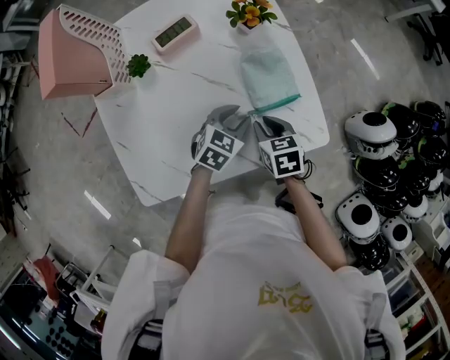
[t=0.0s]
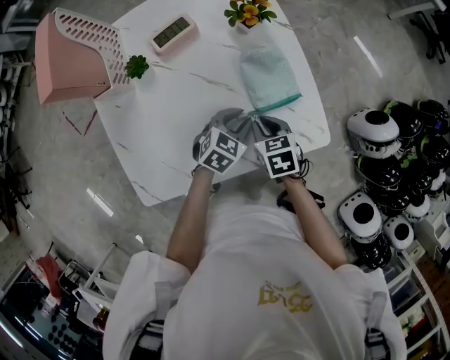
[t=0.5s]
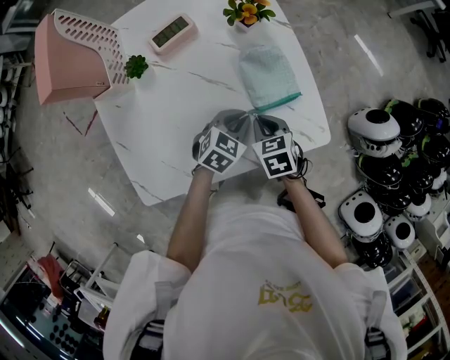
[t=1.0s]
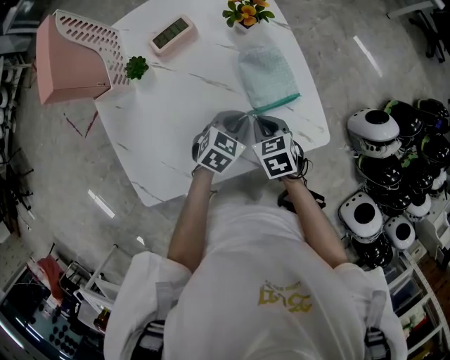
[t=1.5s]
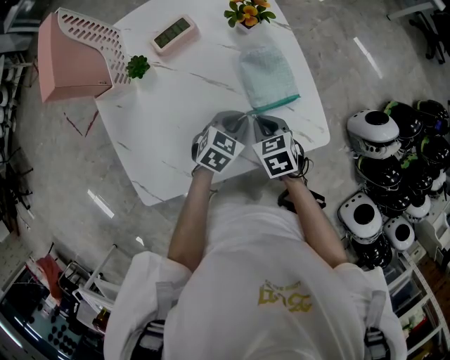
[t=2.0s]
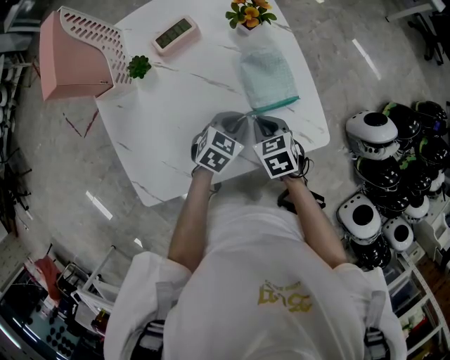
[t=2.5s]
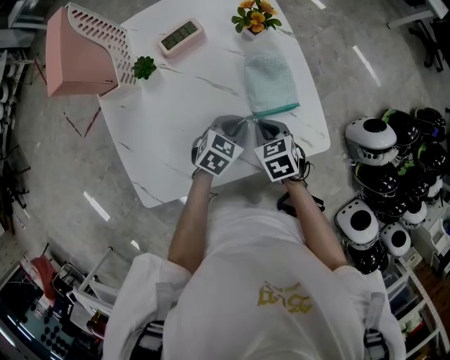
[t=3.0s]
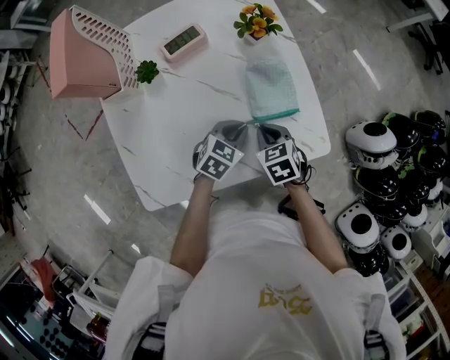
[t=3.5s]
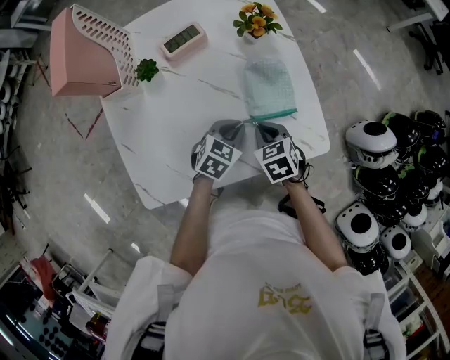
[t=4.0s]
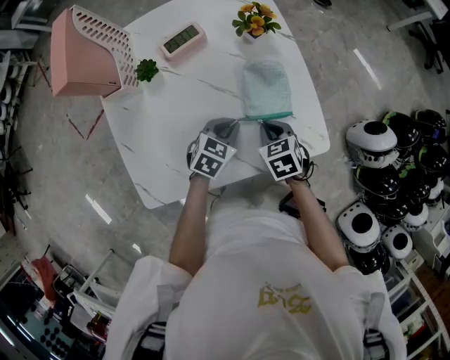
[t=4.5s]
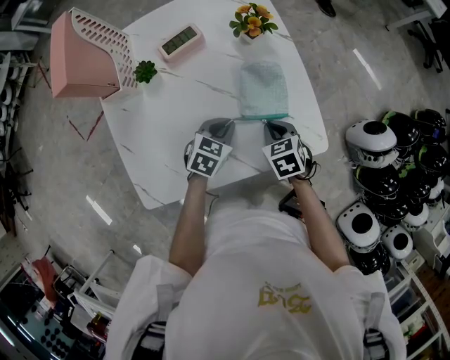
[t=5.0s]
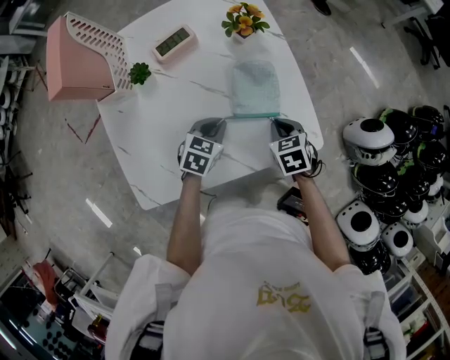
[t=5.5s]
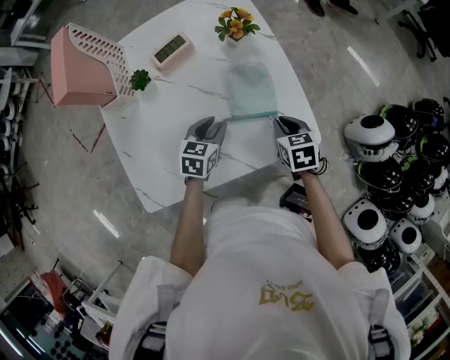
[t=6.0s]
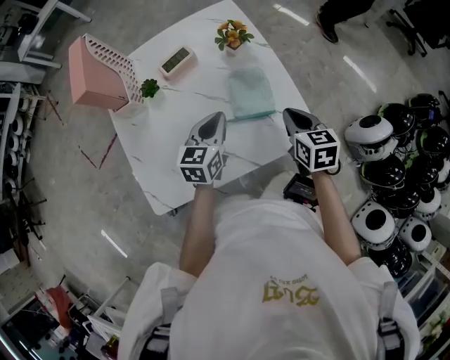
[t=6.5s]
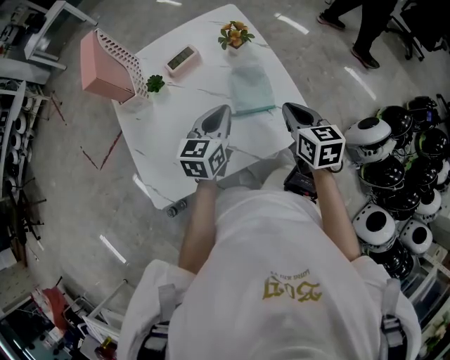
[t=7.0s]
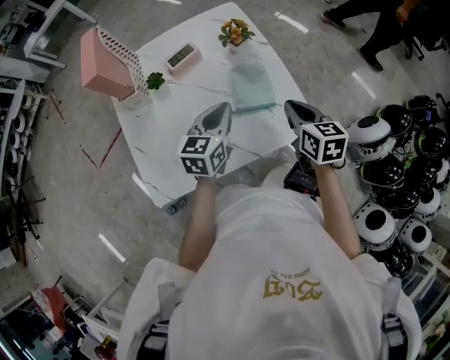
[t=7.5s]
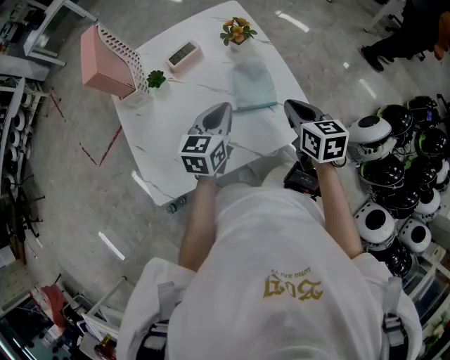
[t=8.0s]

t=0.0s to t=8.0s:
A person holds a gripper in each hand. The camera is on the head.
t=0.0s to t=2.0s: The left gripper closes.
t=2.0s to t=4.0s: The grippers make only small movements.
t=4.0s to t=6.0s: The left gripper opens up, while the right gripper moves to the right, about 10 cm.
t=6.0s to t=8.0s: The grippers both shift upward by some 15 cm. The right gripper rotates roughly 20 degrees; the left gripper rotates approximately 20 degrees, and closes up.

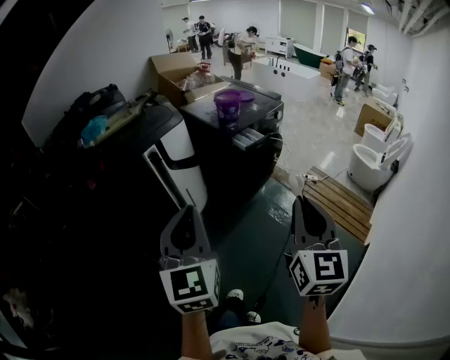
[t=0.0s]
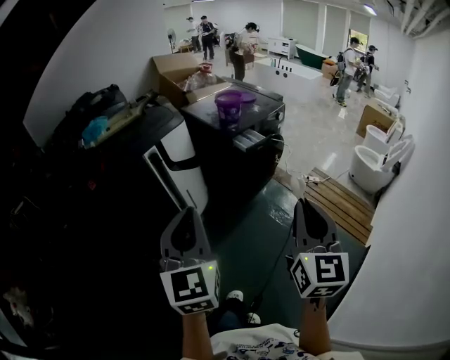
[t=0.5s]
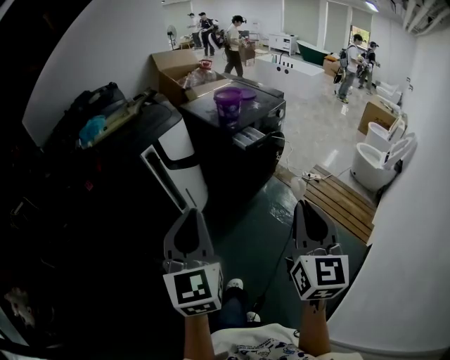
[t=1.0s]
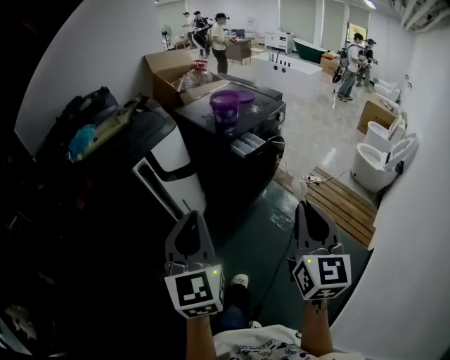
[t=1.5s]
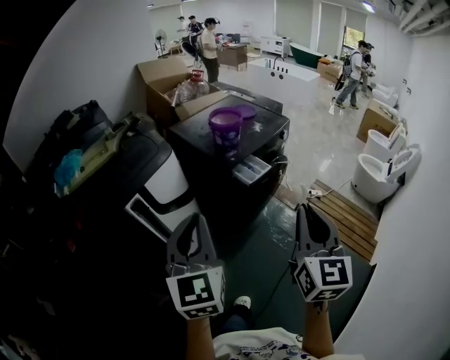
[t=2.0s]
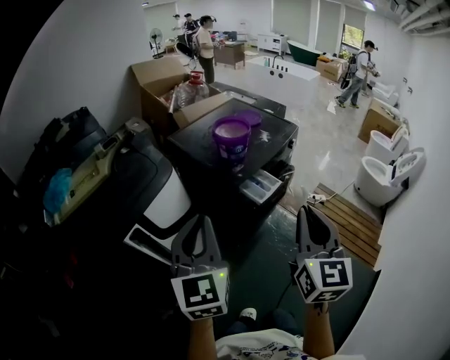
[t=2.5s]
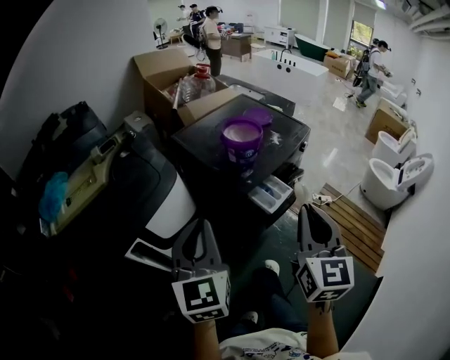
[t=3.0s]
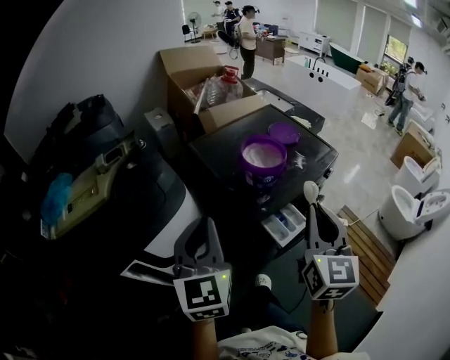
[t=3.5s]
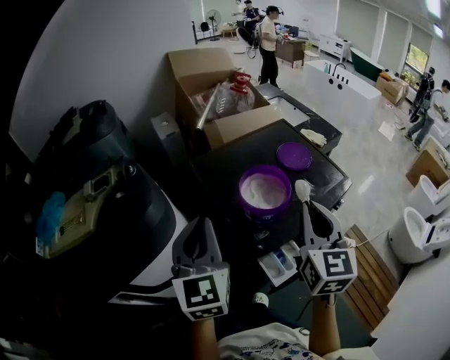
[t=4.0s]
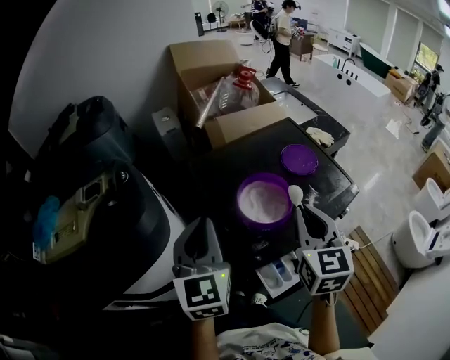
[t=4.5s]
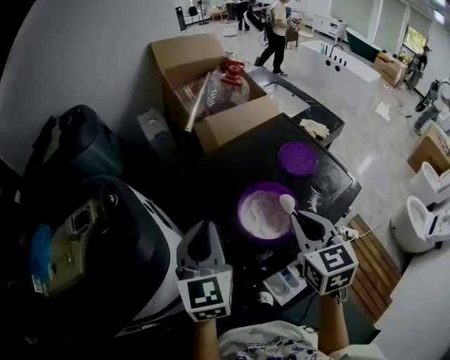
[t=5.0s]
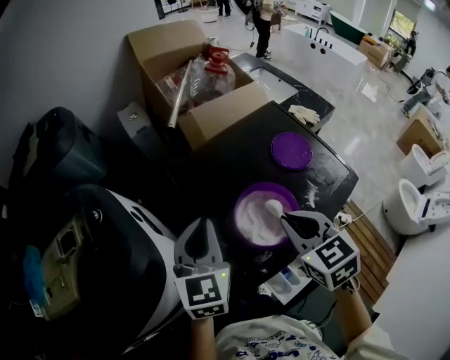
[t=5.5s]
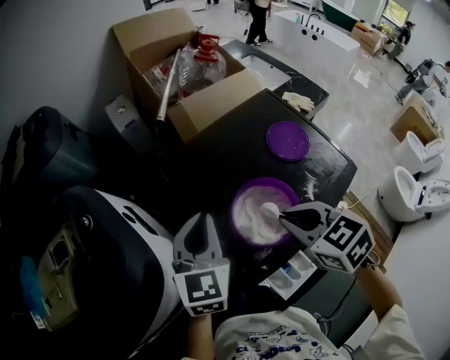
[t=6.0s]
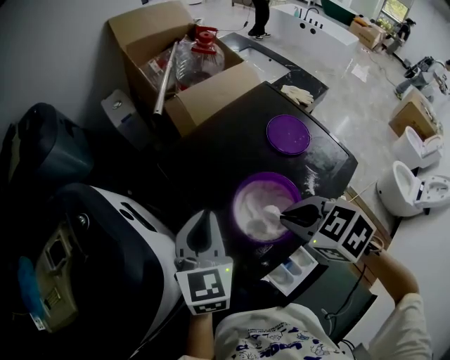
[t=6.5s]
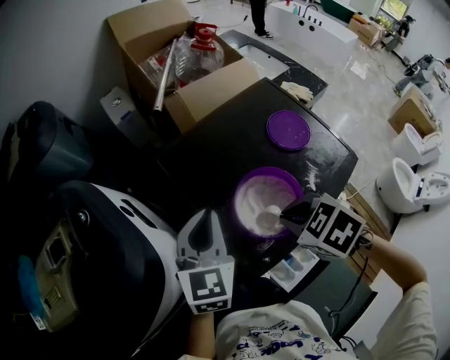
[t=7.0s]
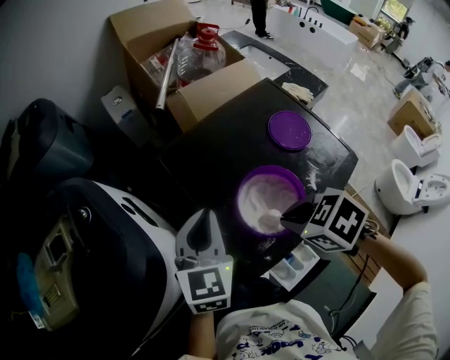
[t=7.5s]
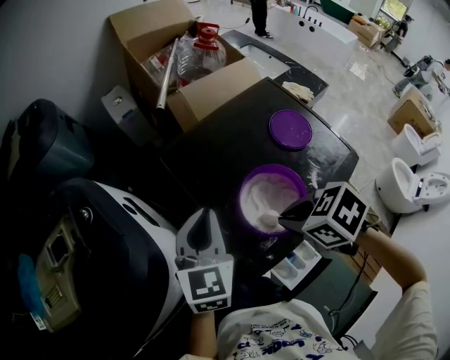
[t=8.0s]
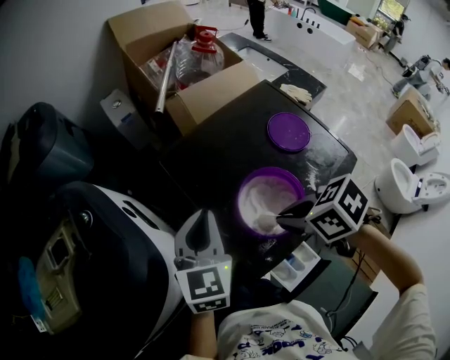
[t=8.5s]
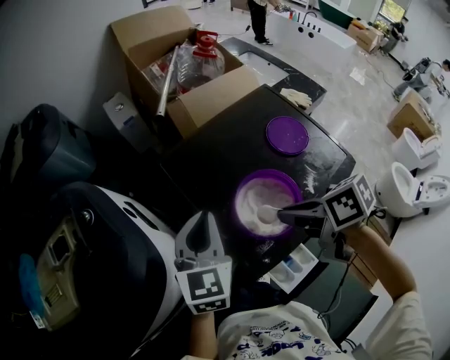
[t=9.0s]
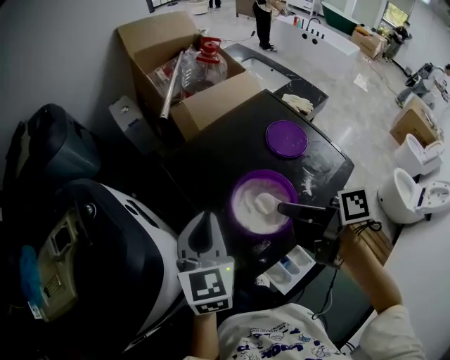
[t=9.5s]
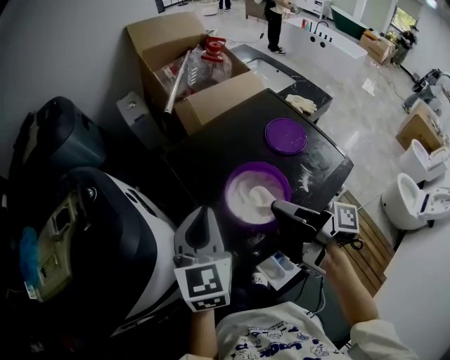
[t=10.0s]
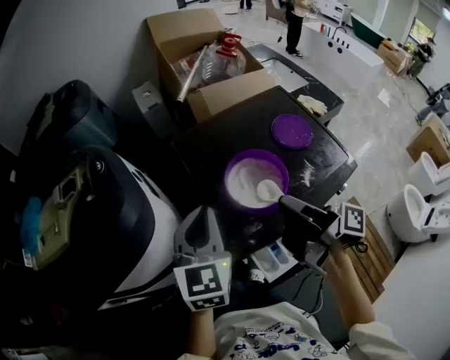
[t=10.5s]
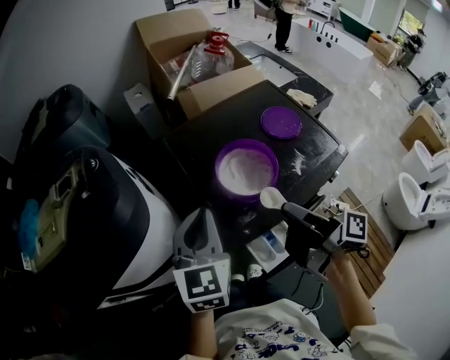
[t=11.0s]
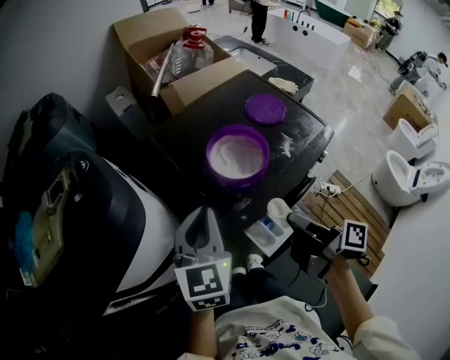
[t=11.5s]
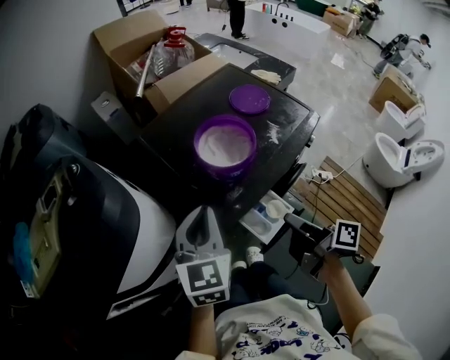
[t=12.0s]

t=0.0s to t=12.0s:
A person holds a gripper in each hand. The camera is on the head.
t=0.0s to t=2.0s: The two grippers go about 25 cm forward.
t=2.0s to t=4.0s: The two grippers travel together, forward, about 50 cm.
t=4.0s to t=6.0s: Both grippers move forward and downward, some 20 cm. The right gripper tips its fingers downward by some 40 degrees.
t=6.0s to t=8.0s: The right gripper swivels some 20 degrees.
t=8.0s to t=10.0s: The right gripper moves approximately 5 cm, and angles its fingers upward, by some 60 degrees. Meanwhile the left gripper ends up about 5 cm from where it was.
t=10.0s to t=12.0s: The right gripper is displaced backward and downward by roughly 20 cm, and rotates some 30 degrees. Meanwhile the left gripper goes some 15 cm backward.

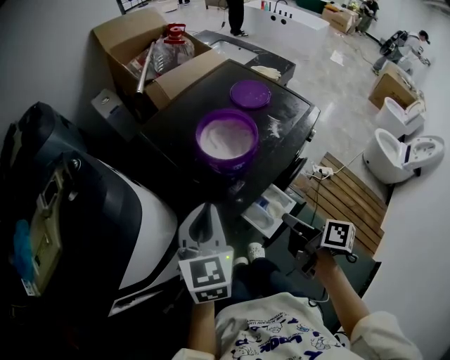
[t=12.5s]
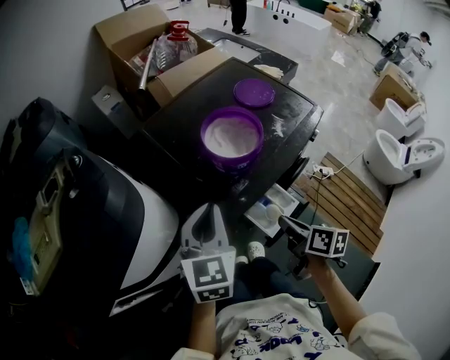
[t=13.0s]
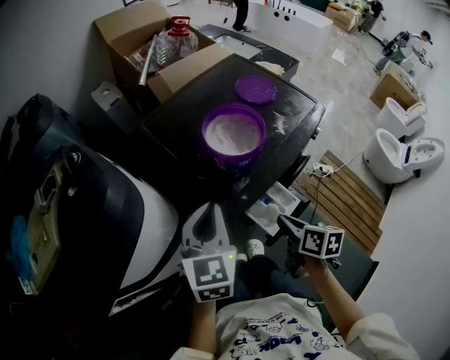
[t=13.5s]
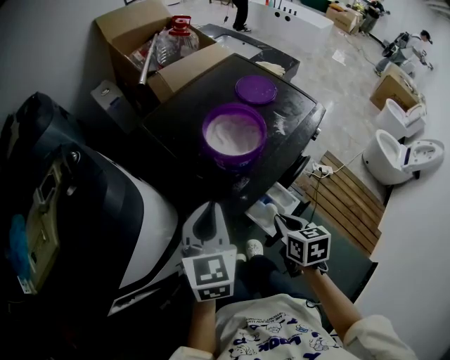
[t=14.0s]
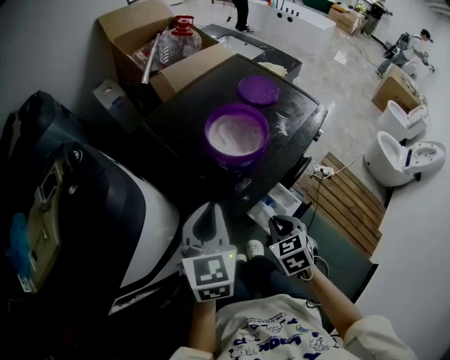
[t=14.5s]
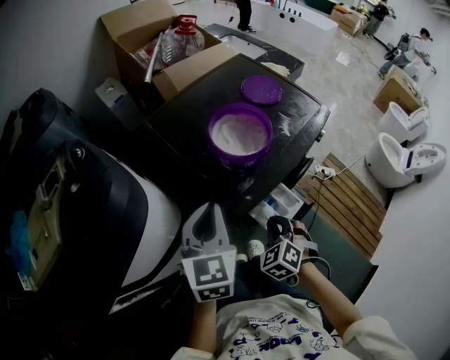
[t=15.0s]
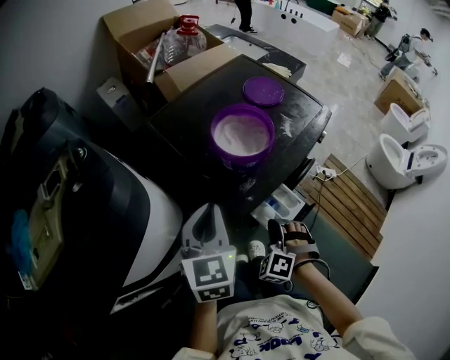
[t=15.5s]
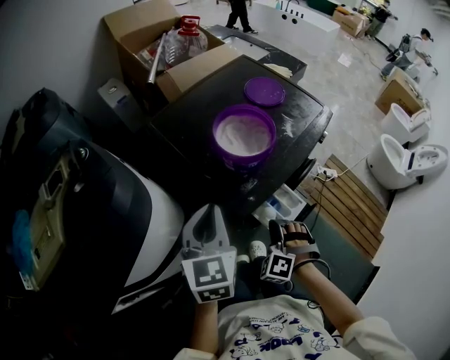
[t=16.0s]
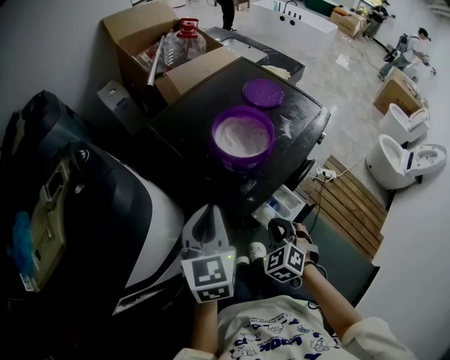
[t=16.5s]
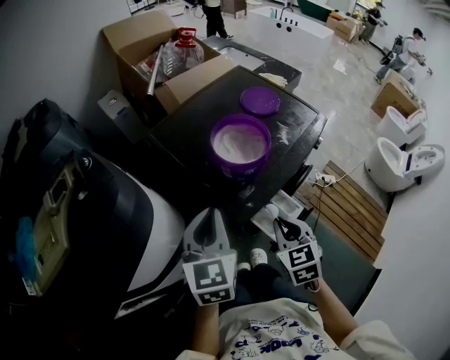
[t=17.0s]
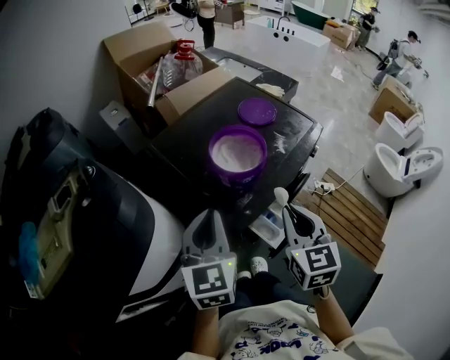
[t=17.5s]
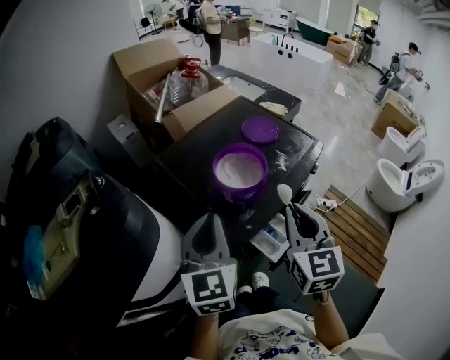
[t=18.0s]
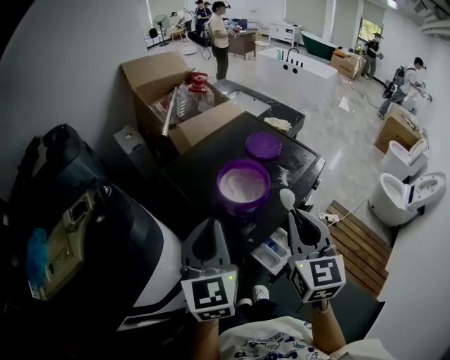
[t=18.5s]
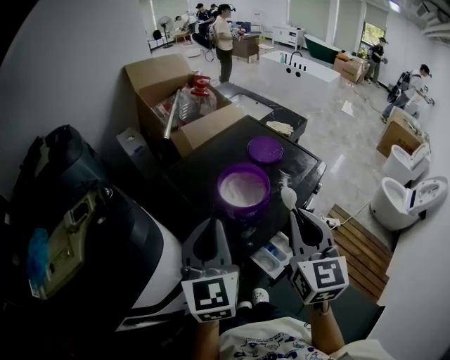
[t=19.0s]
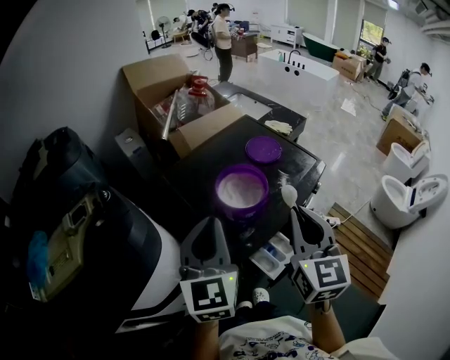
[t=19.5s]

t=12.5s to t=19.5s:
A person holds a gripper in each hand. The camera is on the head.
t=12.5s to t=14.5s: The right gripper heads downward and to the left, covering about 10 cm, and rotates around the line of its fingers by roughly 70 degrees, counterclockwise from behind.
t=14.5s to t=16.0s: The right gripper twists approximately 50 degrees counterclockwise, seen from behind.
t=16.0s to t=17.5s: The right gripper moves upward, roughly 20 cm, and rotates around the line of its fingers by about 70 degrees, clockwise from behind.
t=17.5s to t=19.5s: The two grippers go approximately 10 cm upward.
